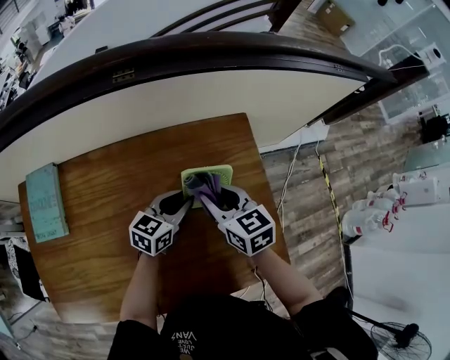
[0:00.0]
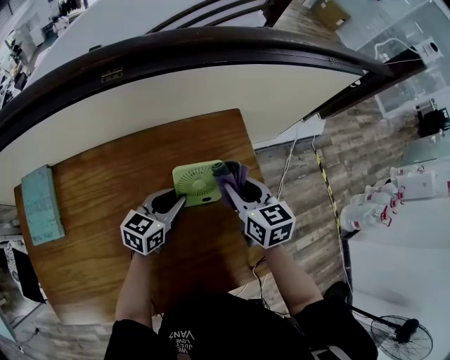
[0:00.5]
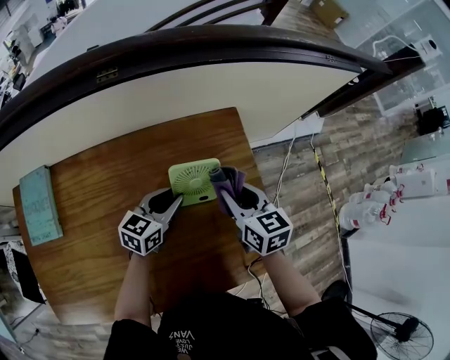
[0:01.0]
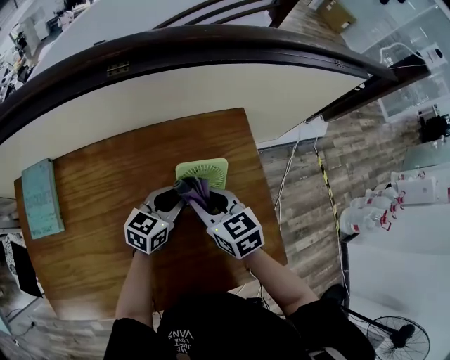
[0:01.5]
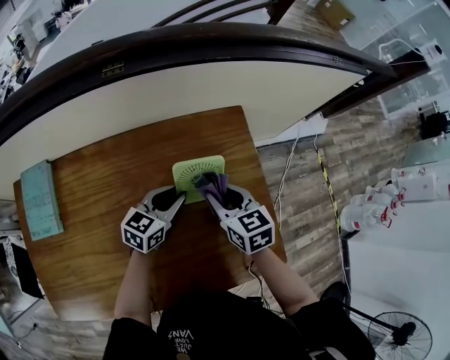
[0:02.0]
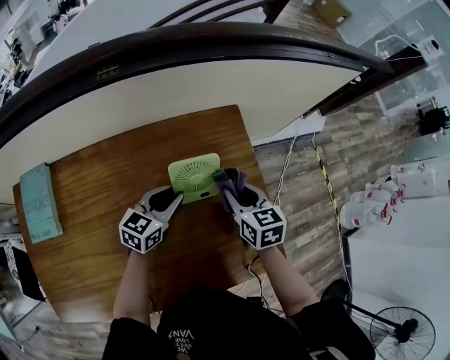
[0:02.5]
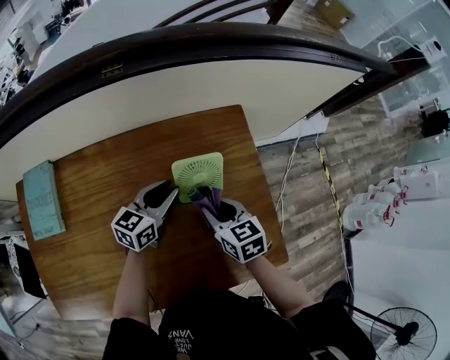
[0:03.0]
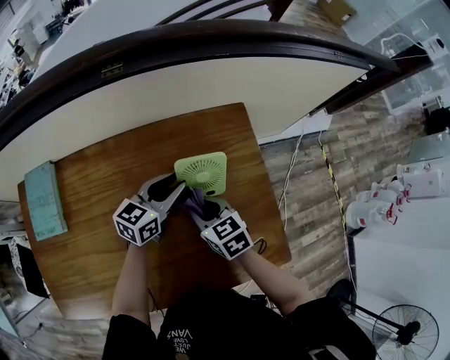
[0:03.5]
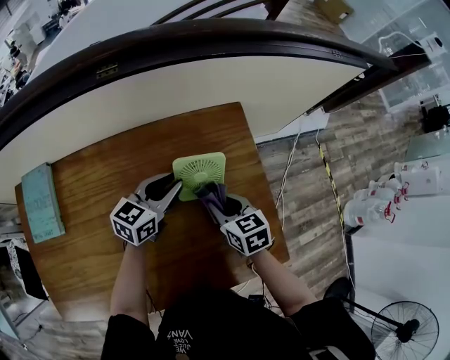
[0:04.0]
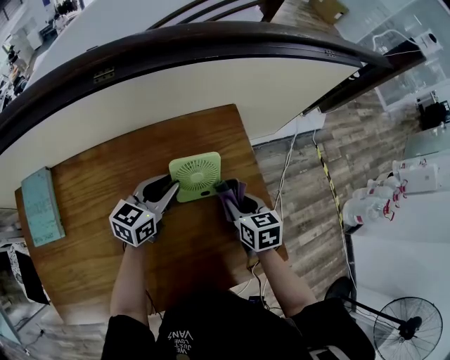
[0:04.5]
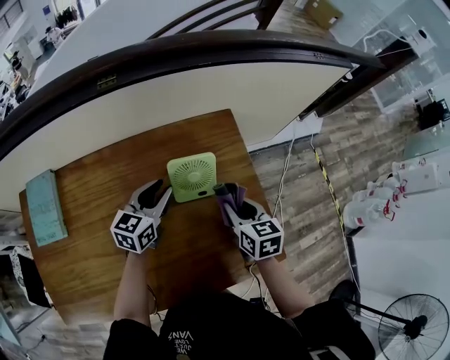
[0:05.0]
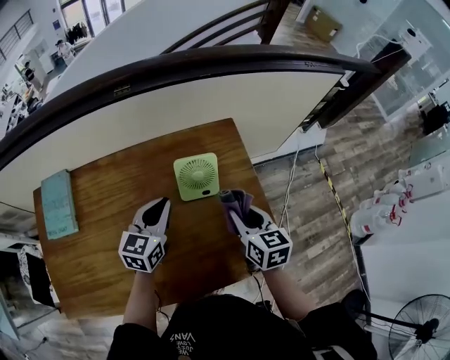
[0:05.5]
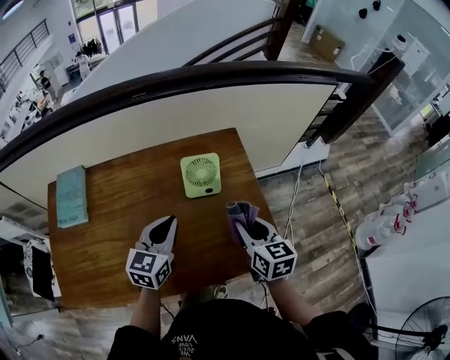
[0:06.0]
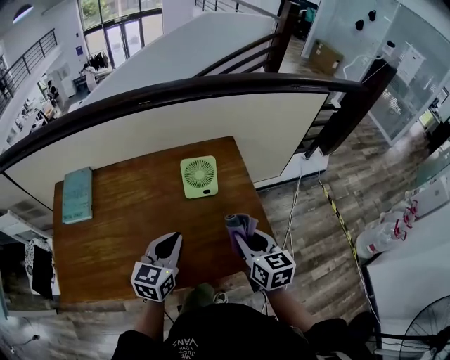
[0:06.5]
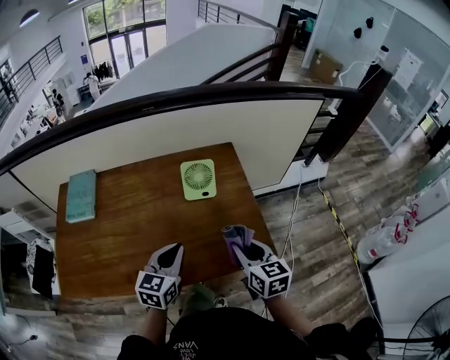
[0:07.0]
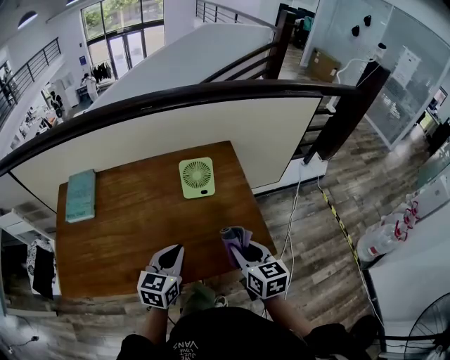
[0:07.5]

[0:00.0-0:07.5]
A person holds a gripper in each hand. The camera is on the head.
0:00.0 to 0:02.0: The right gripper goes left and right, some 10 cm each way, reversing 2 times.
0:02.0 to 0:04.0: The right gripper swings left and right, approximately 10 cm each way, with 2 reversals.
0:04.0 to 0:05.5: The right gripper shifts about 10 cm upward and to the right. The left gripper is displaced backward and upward by roughly 10 cm.
0:05.5 to 0:07.5: The two grippers go roughly 20 cm backward.

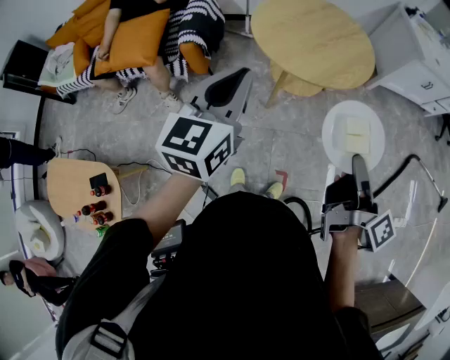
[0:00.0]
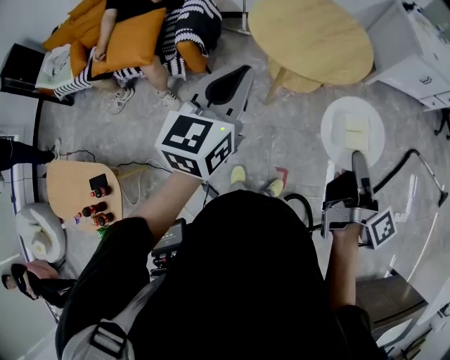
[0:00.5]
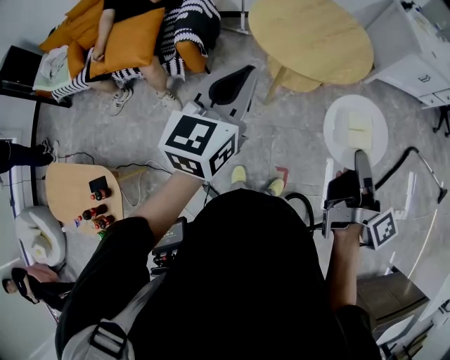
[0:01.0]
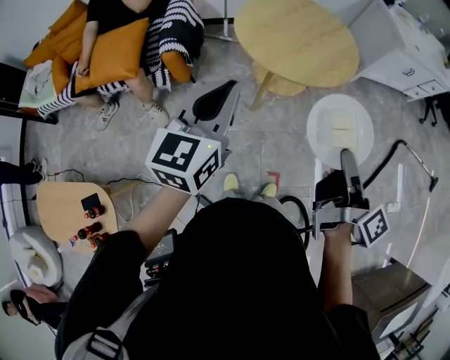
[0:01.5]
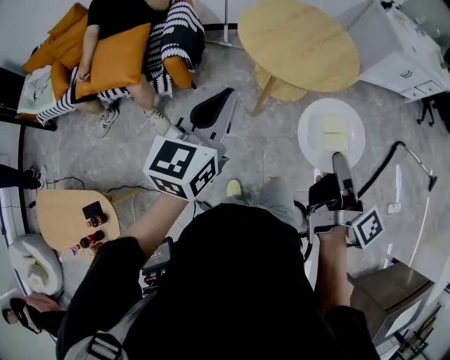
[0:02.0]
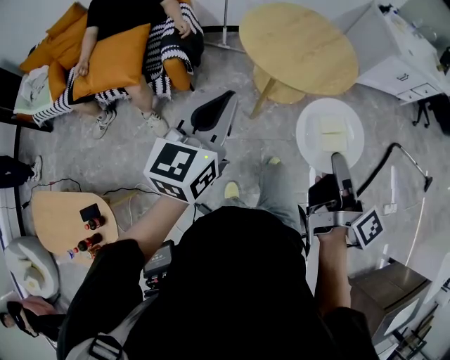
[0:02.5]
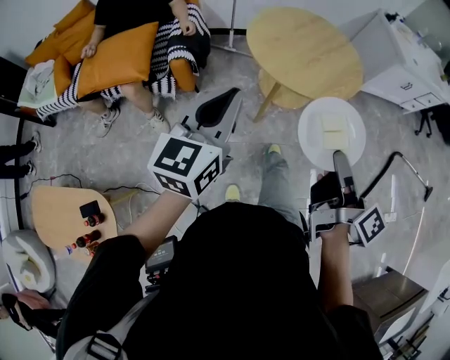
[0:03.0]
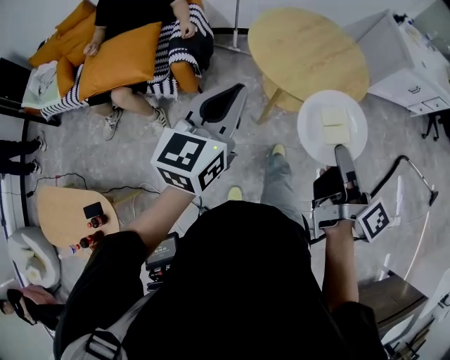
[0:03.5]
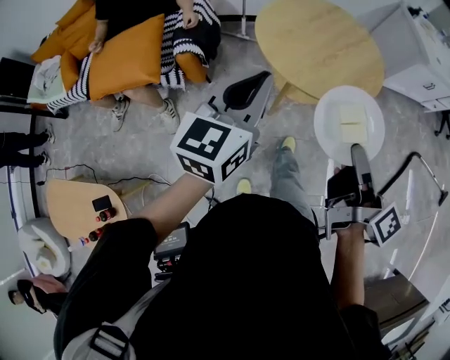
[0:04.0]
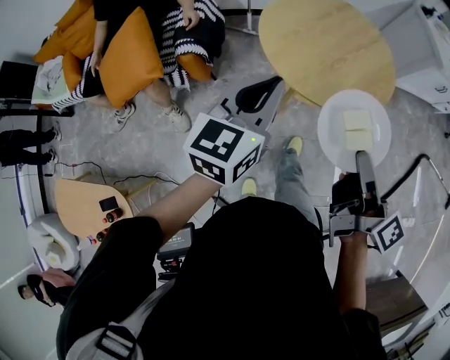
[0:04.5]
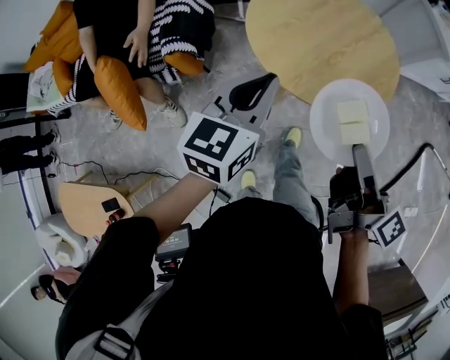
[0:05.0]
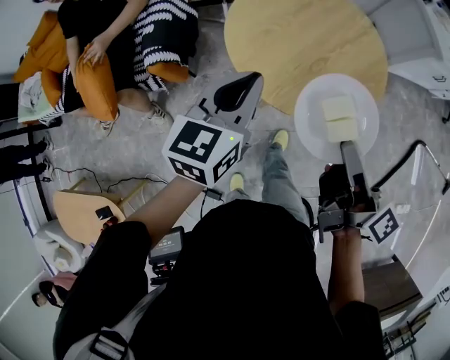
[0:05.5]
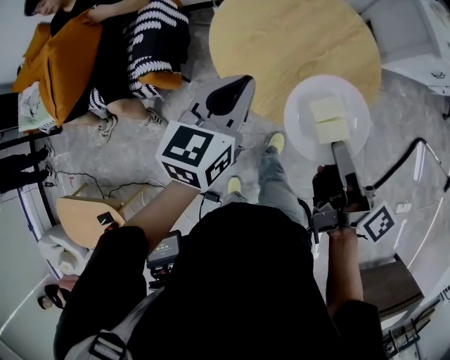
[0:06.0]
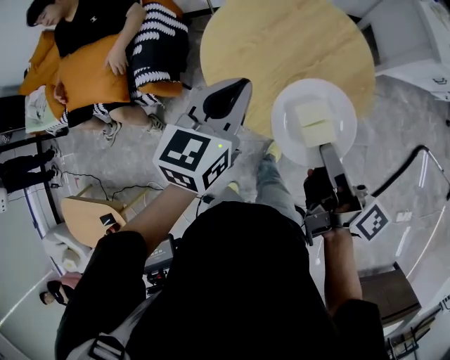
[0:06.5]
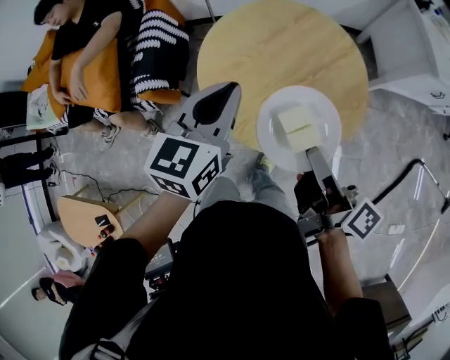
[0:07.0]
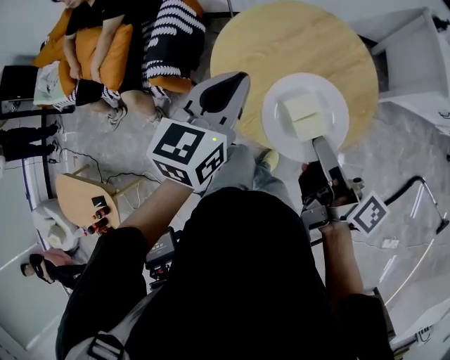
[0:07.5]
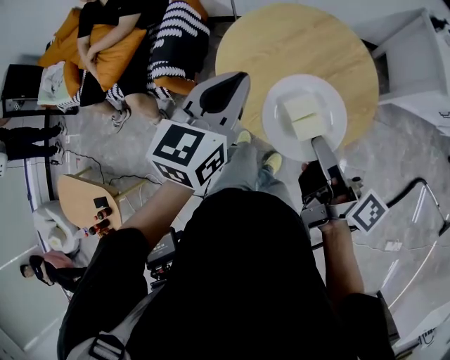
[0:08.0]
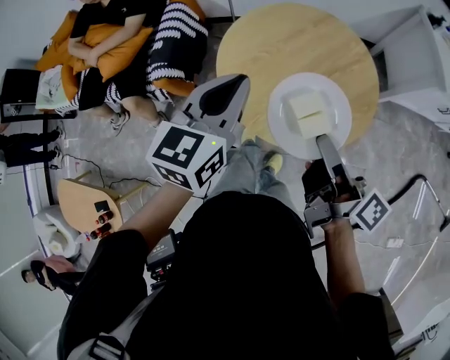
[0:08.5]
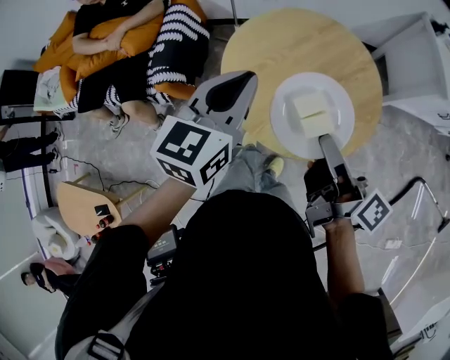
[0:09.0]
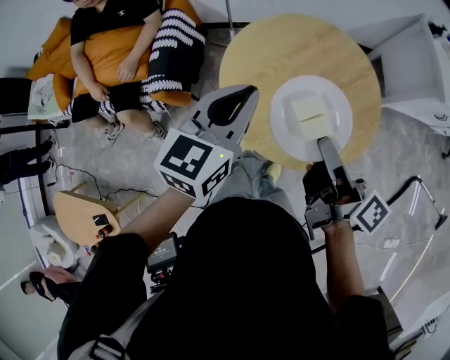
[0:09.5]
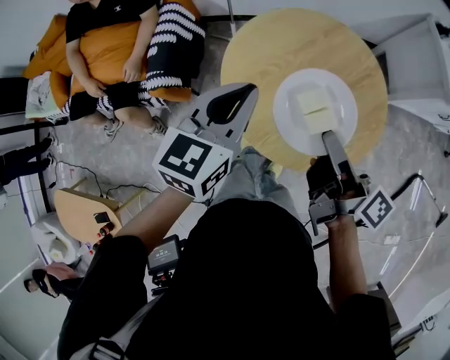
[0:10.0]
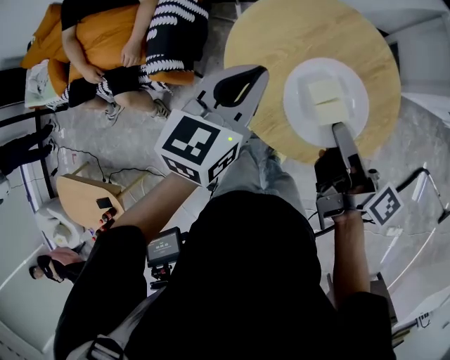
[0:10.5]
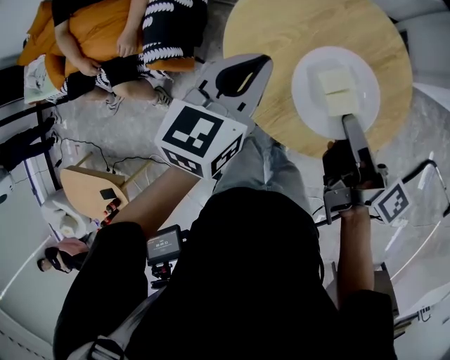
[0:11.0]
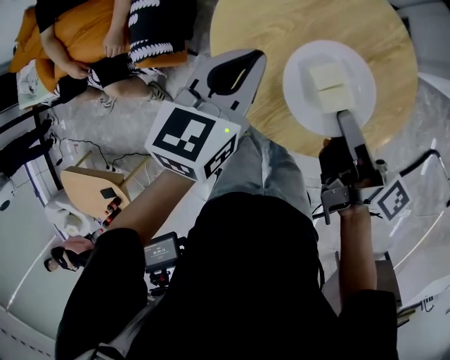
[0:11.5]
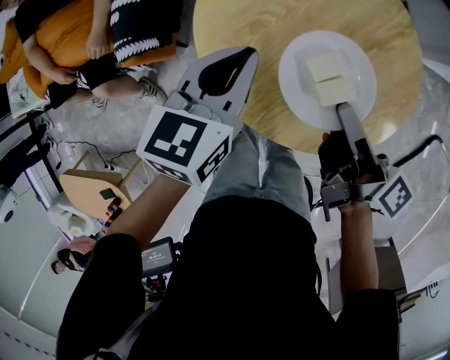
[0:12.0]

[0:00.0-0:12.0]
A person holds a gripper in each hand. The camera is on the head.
0:00.0 to 0:02.0: The left gripper moves approximately 5 cm.
0:02.0 to 0:04.0: The left gripper moves about 10 cm.
0:04.0 to 0:06.0: The left gripper moves roughly 20 cm.
0:06.0 to 0:08.0: The left gripper moves upward, approximately 5 cm.
0:08.0 to 0:10.0: The left gripper moves roughly 10 cm.
0:10.0 to 0:12.0: The left gripper heads downward, covering about 10 cm.

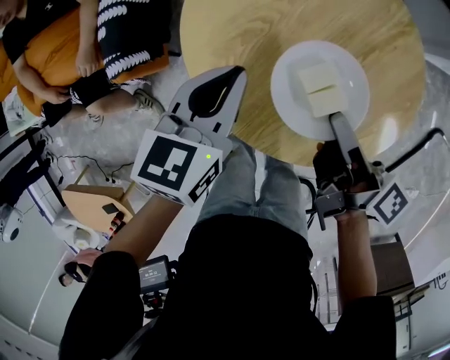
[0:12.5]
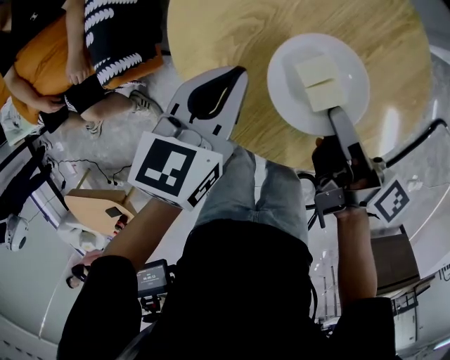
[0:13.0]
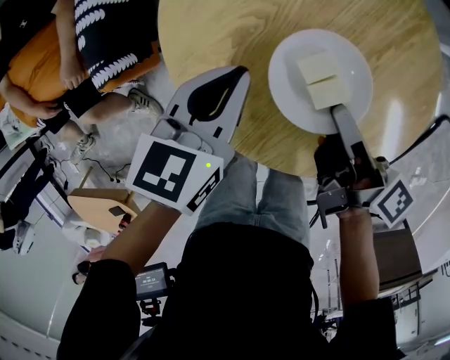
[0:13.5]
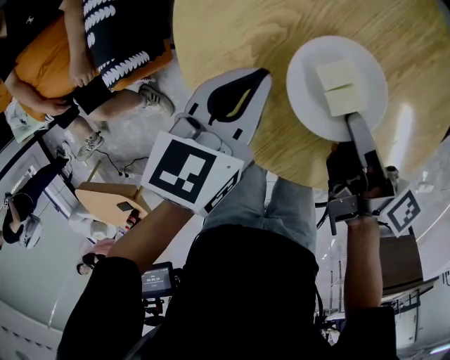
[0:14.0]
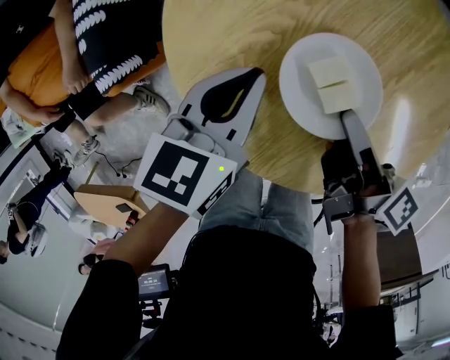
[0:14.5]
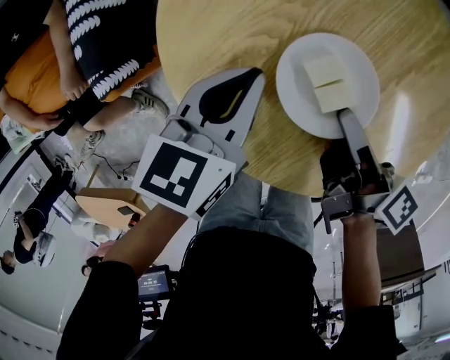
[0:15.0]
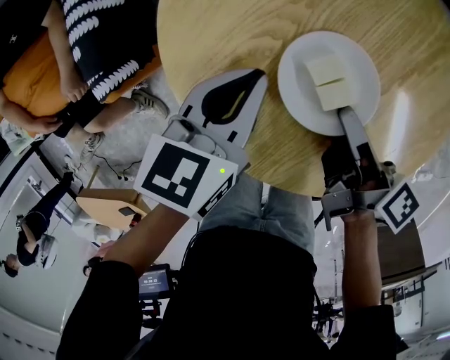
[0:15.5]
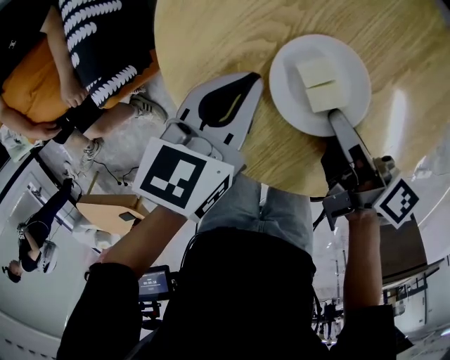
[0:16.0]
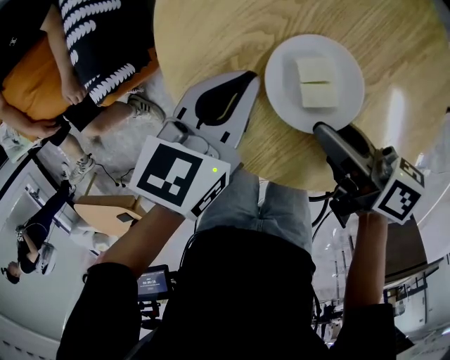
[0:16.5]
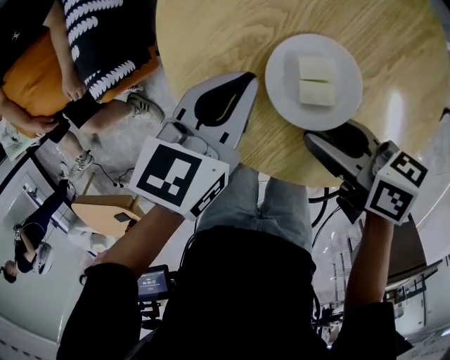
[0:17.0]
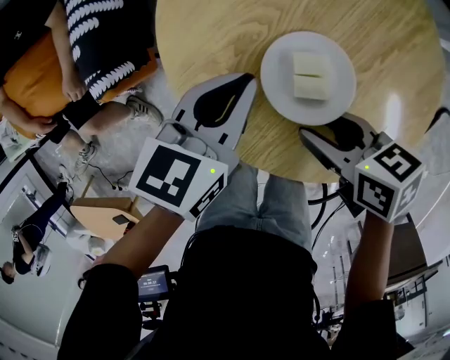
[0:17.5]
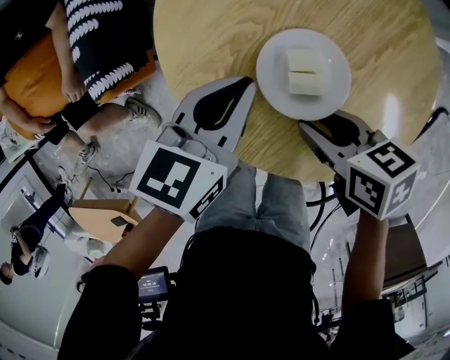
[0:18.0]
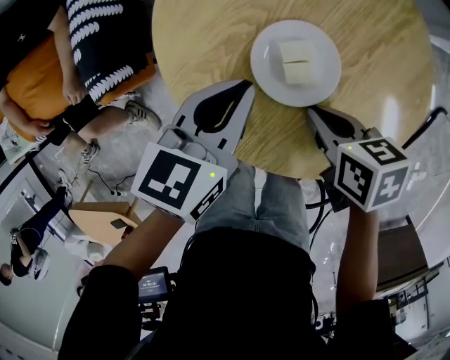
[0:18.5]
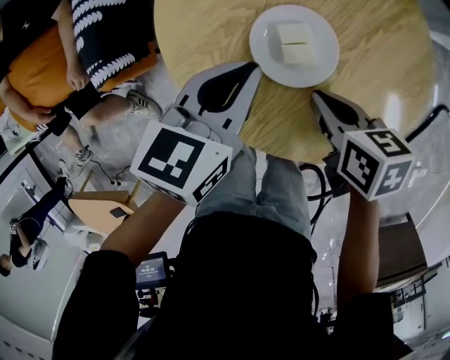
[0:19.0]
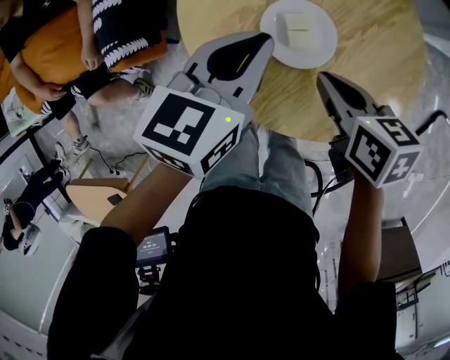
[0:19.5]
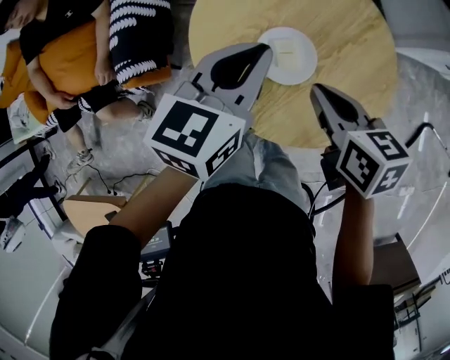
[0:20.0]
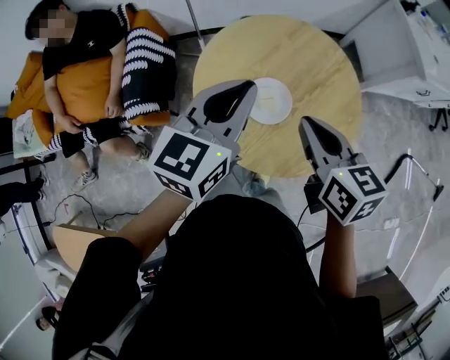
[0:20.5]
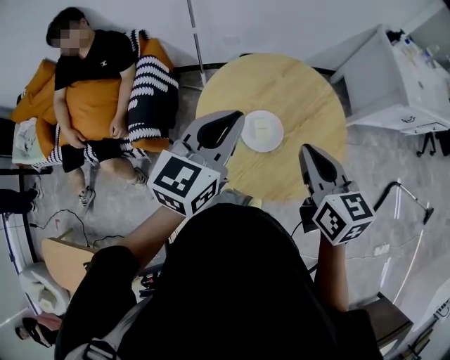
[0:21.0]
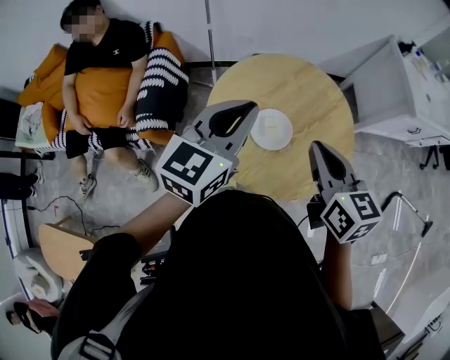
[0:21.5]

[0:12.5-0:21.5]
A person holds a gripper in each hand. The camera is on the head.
0:17.0 to 0:19.5: The left gripper heads upward, covering some 5 cm.
0:19.5 to 0:21.5: The left gripper moves upward, some 10 cm, and swivels some 20 degrees.
